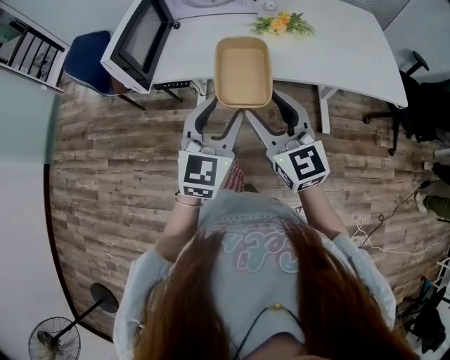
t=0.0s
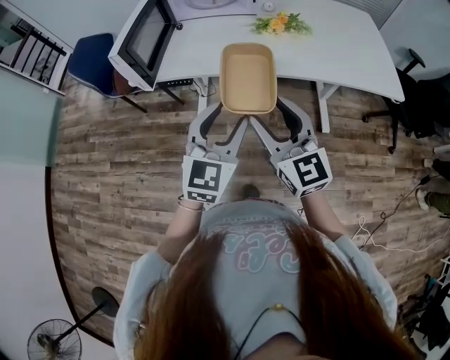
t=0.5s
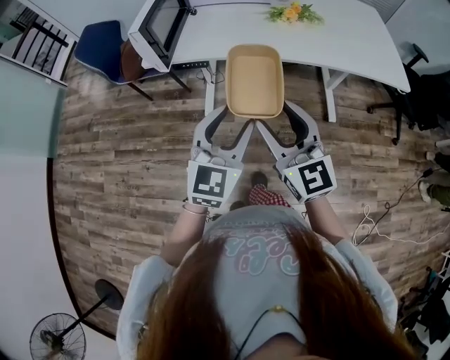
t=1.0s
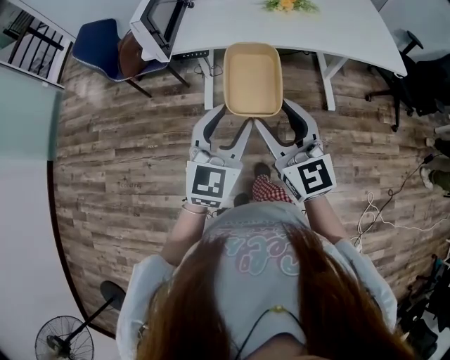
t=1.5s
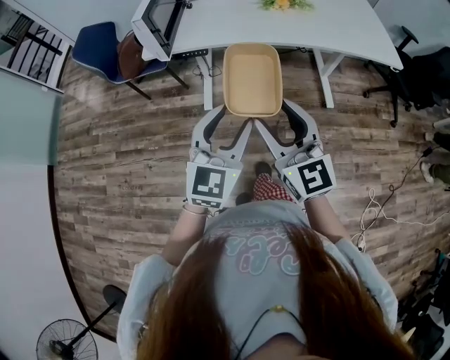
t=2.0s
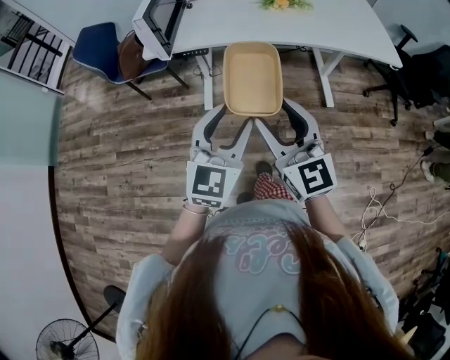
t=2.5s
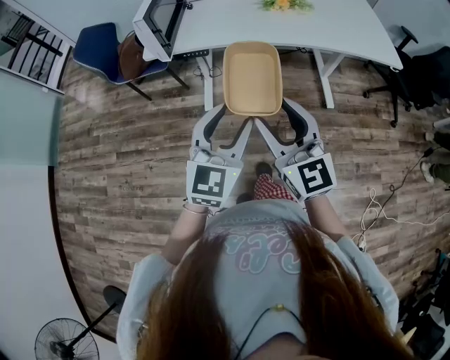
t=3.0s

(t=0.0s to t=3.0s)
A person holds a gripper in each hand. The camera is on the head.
t=0.0s - t=1.5s: The grippers both shift backward and to the left by about 15 cm.
t=1.5s - t=3.0s: The grippers make only small movements.

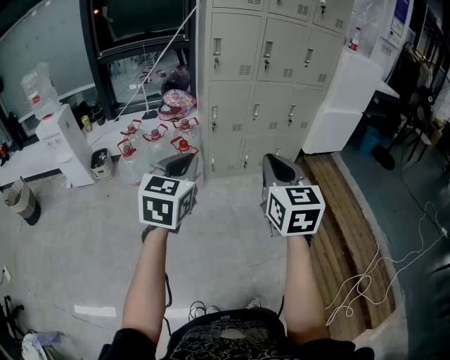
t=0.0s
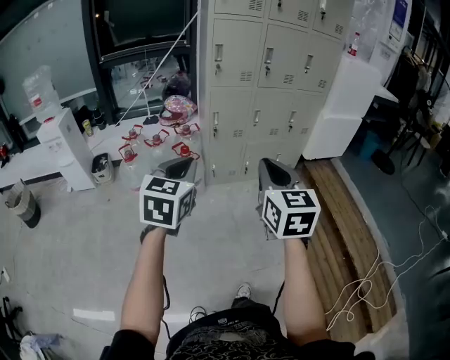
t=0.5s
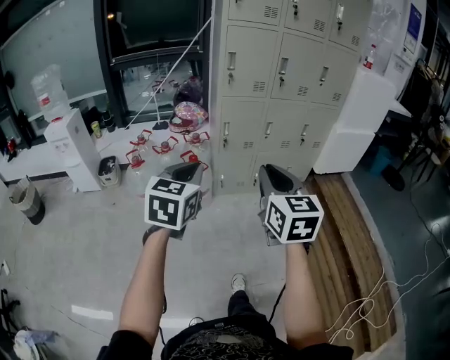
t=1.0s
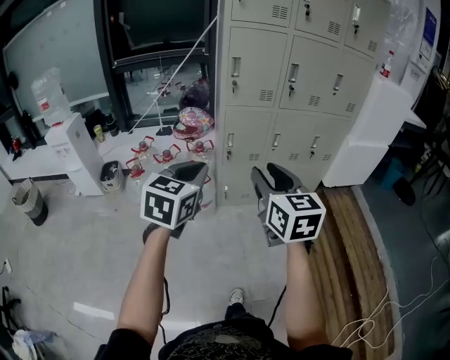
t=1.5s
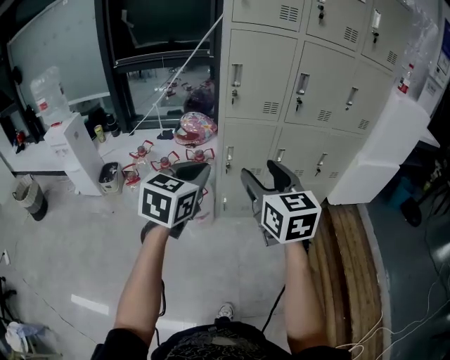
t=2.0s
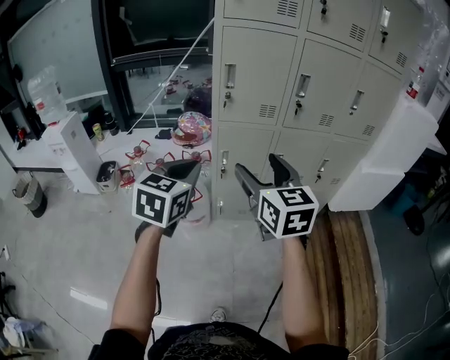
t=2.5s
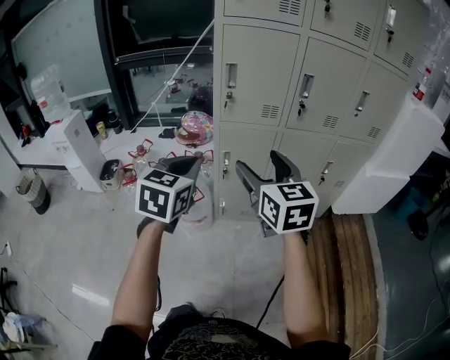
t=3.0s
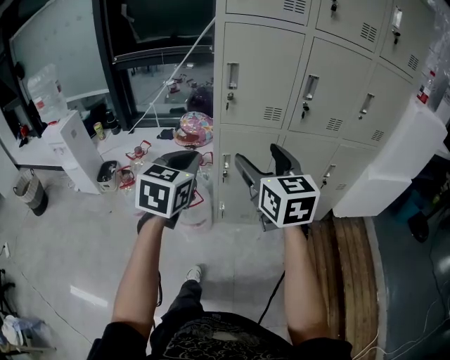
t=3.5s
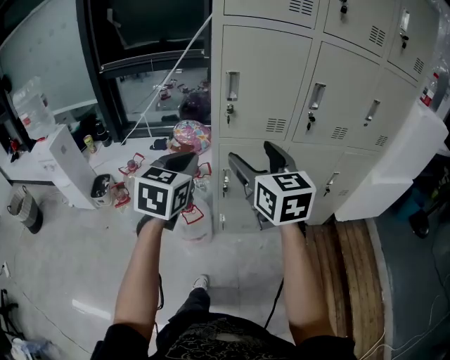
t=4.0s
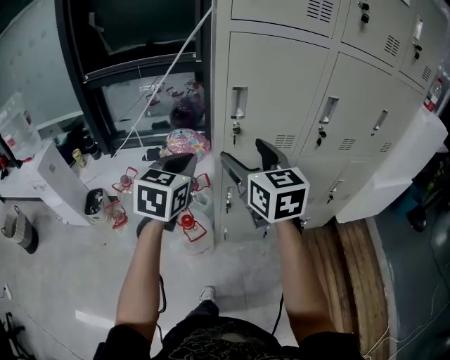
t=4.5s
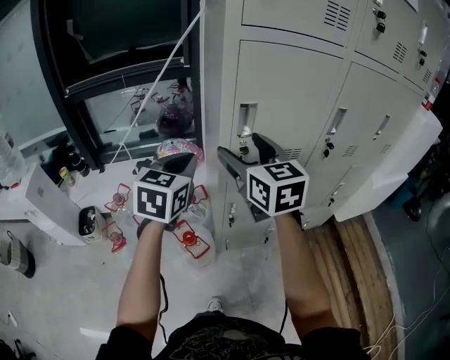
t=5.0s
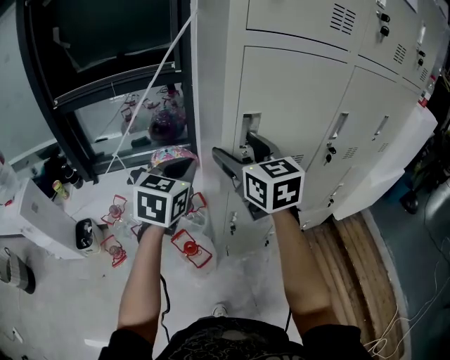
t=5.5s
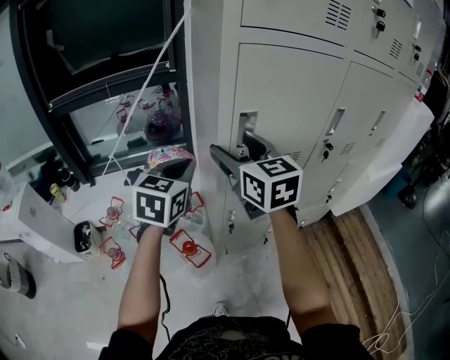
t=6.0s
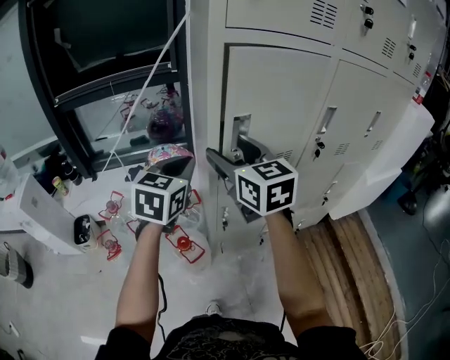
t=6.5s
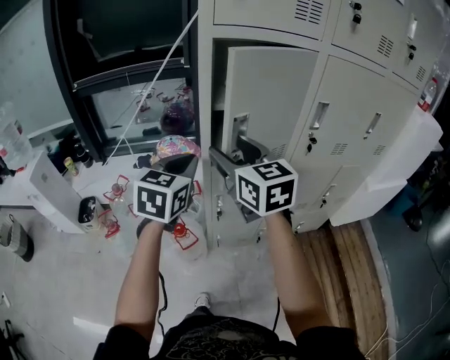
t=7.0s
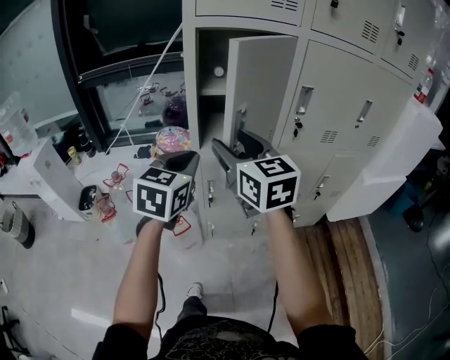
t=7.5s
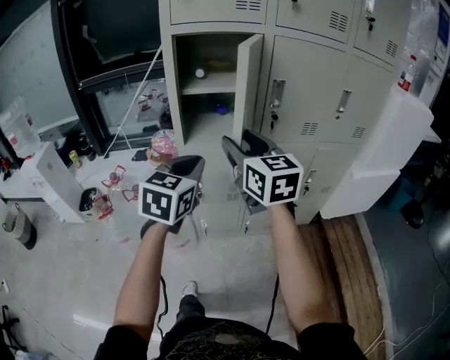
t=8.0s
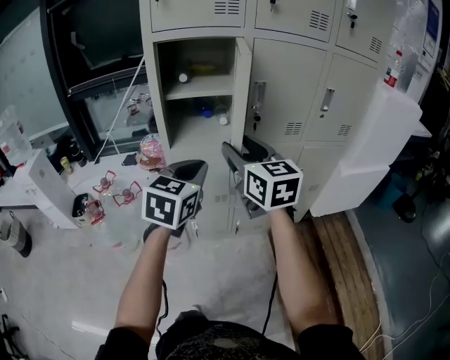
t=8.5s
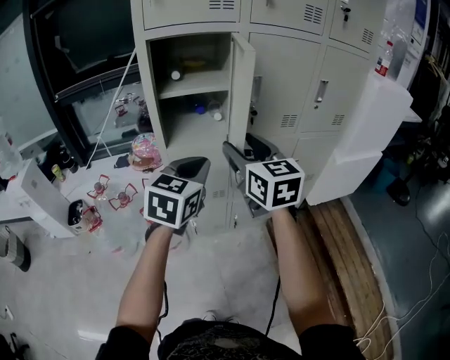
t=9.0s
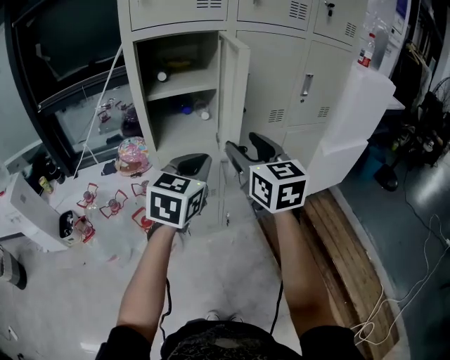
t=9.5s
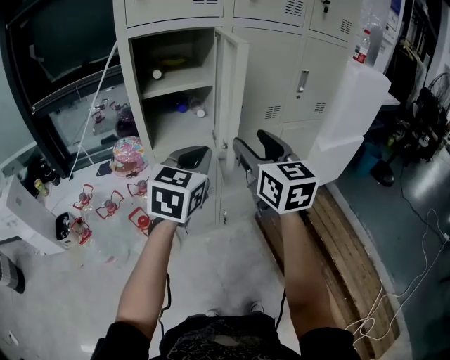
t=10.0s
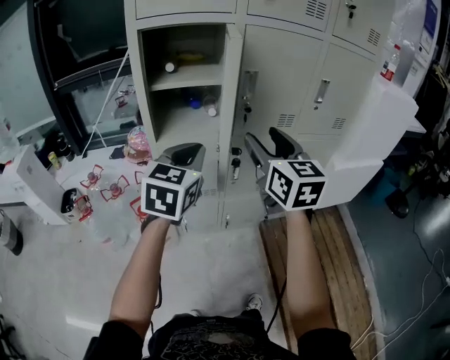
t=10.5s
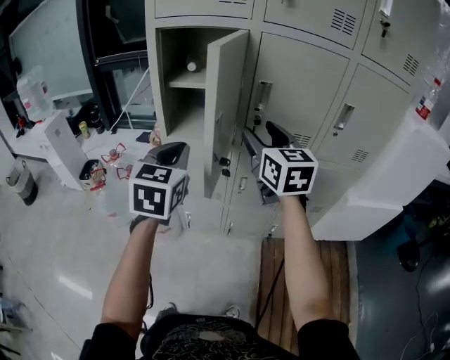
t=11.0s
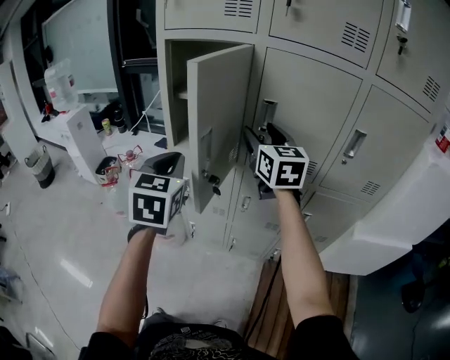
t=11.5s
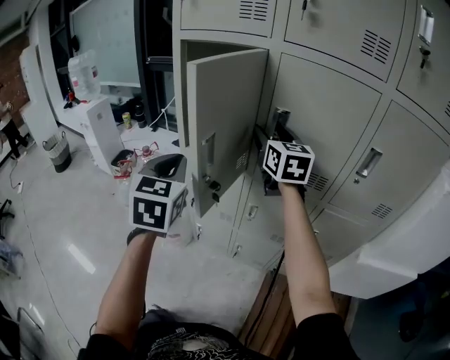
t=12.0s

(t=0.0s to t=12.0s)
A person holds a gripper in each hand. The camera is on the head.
t=0.0s - t=2.0s: Both grippers move forward, roughly 30 cm. The right gripper opens up.
t=2.0s - t=4.0s: Both grippers travel together forward, some 20 cm.
t=4.0s - t=6.0s: The left gripper moves forward, some 20 cm. Meanwhile the right gripper moves forward and to the left, approximately 25 cm.
t=6.0s - t=8.0s: The right gripper travels to the right and backward by some 25 cm, while the left gripper heads backward and to the right, covering roughly 30 cm.
t=8.0s - t=10.0s: Both grippers travel together to the right, roughly 10 cm.
t=10.0s - t=12.0s: The right gripper moves roughly 25 cm, and turns by about 30 degrees, while the left gripper swivels approximately 50 degrees.

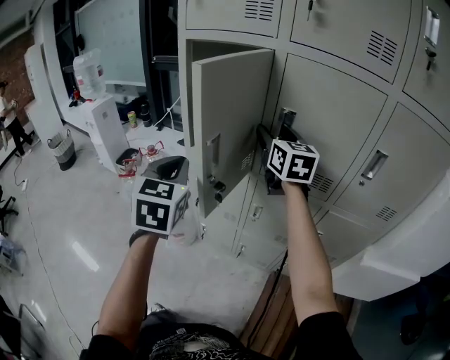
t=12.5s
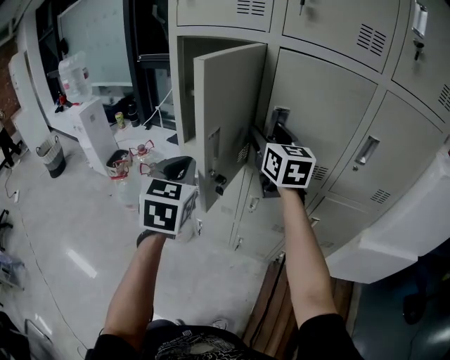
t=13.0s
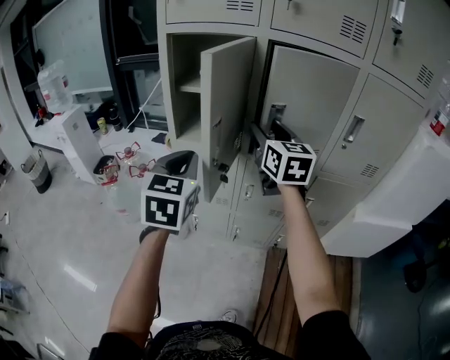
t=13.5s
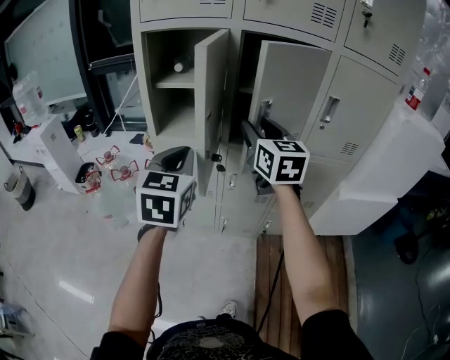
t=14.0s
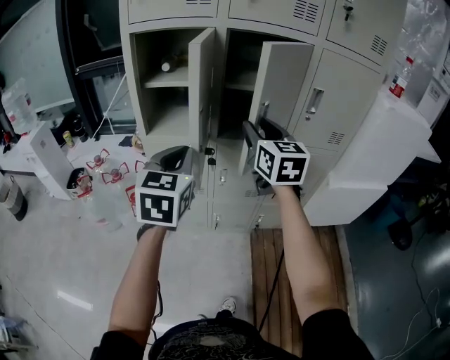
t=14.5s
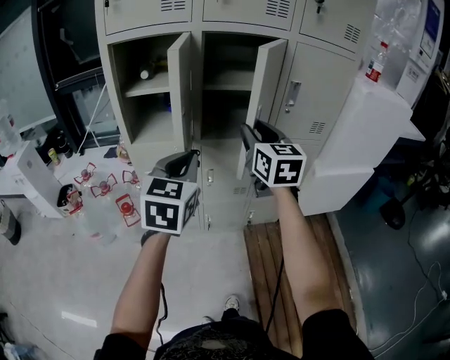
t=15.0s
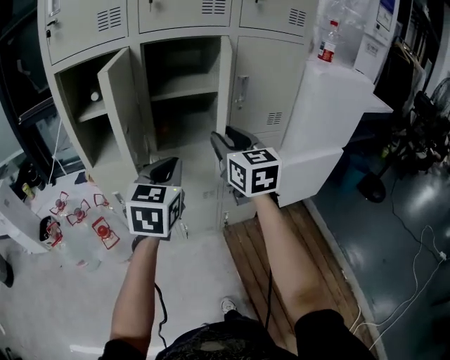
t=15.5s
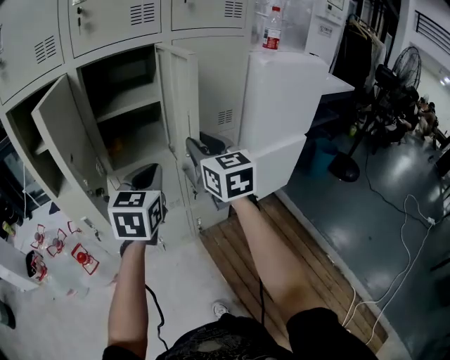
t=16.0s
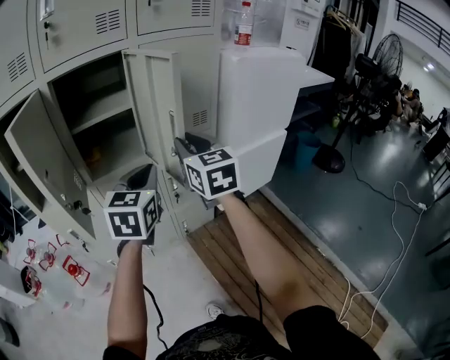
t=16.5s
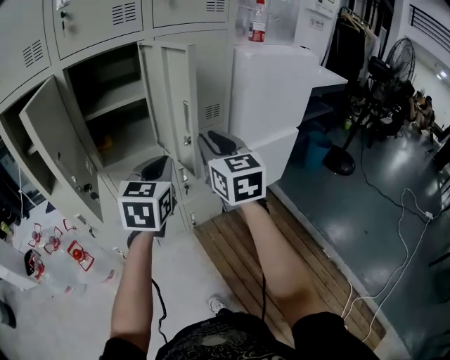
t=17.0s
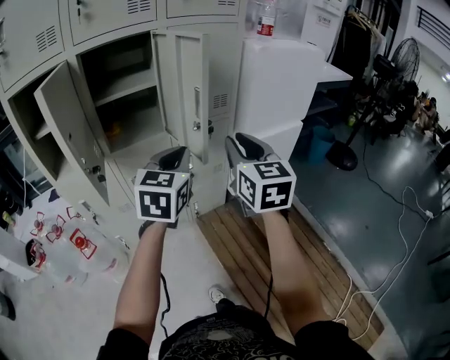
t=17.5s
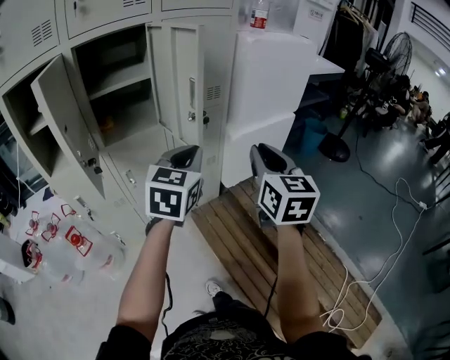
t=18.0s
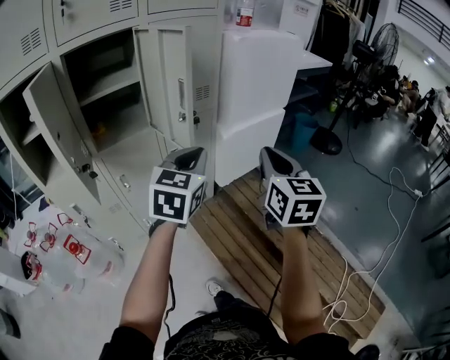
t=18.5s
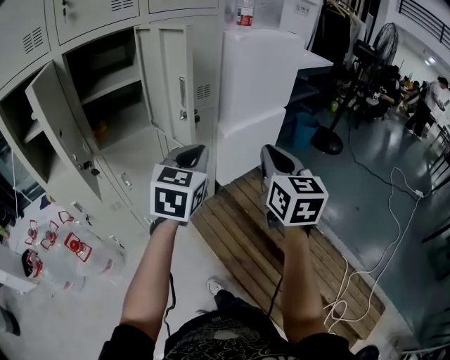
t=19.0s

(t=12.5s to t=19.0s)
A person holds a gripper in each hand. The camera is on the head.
t=12.5s - t=14.5s: The left gripper heads to the right and backward, covering about 10 cm, and changes its angle by about 30 degrees; the right gripper is displaced backward by about 15 cm.
t=14.5s - t=17.0s: Both grippers move to the right, about 25 cm. The left gripper turns by about 30 degrees, while the right gripper swivels some 20 degrees.
t=17.0s - t=19.0s: The right gripper is displaced to the right and backward by approximately 20 cm, and turns by some 20 degrees; the left gripper shifts approximately 10 cm to the right and backward.

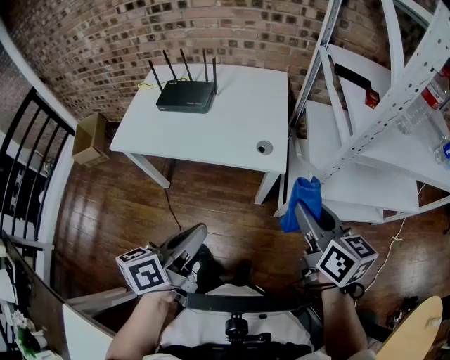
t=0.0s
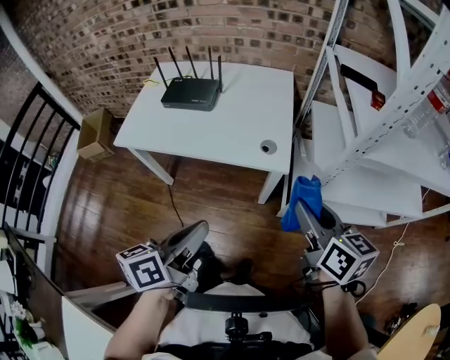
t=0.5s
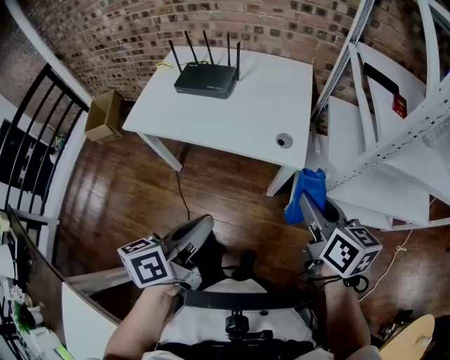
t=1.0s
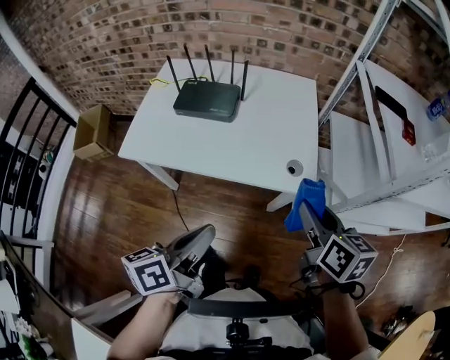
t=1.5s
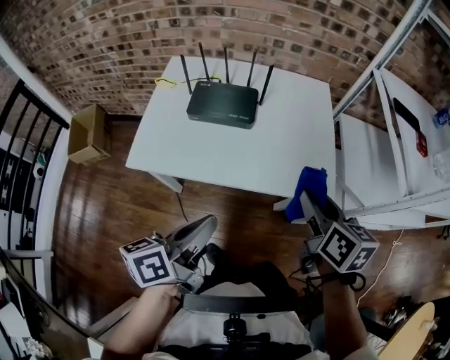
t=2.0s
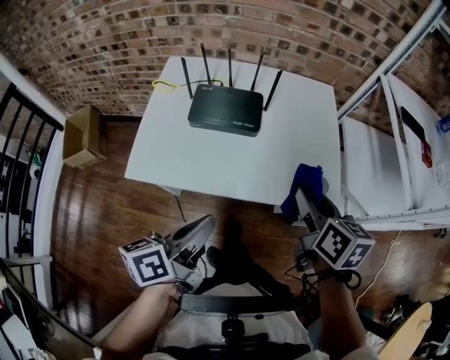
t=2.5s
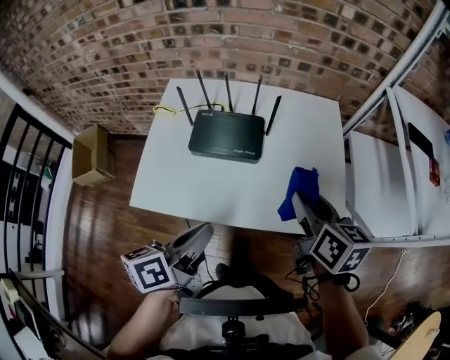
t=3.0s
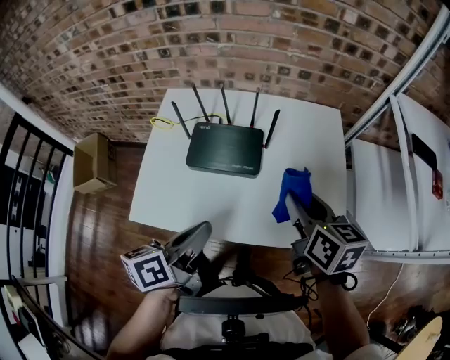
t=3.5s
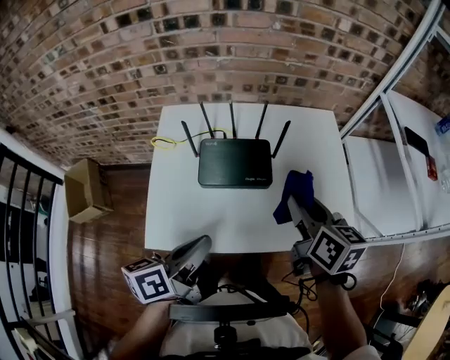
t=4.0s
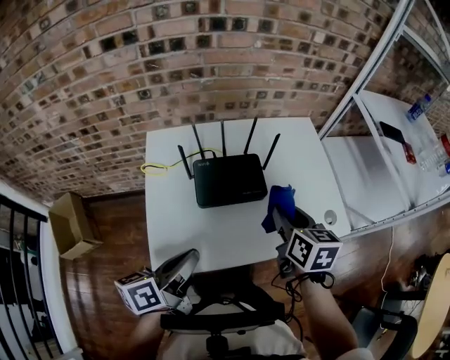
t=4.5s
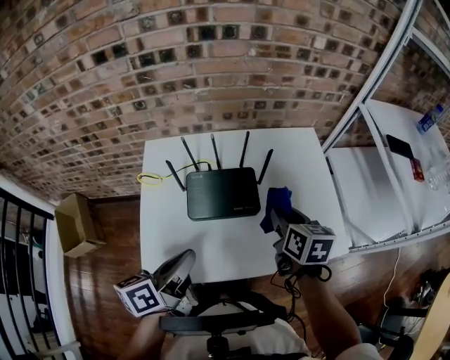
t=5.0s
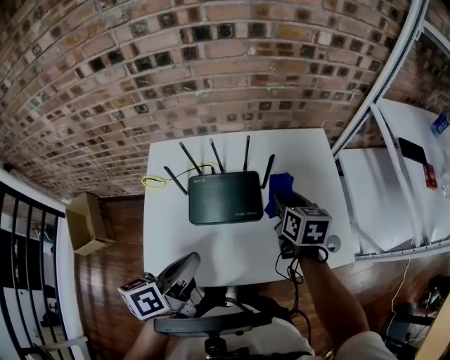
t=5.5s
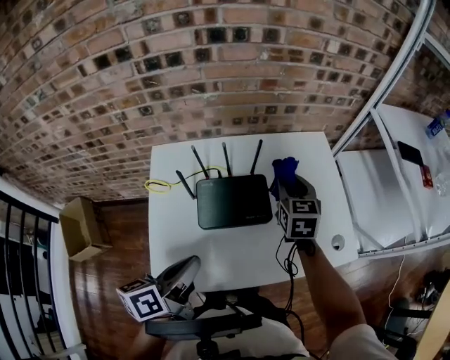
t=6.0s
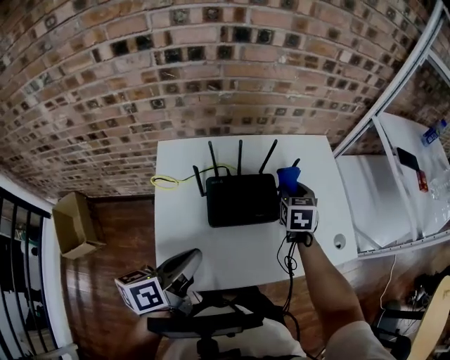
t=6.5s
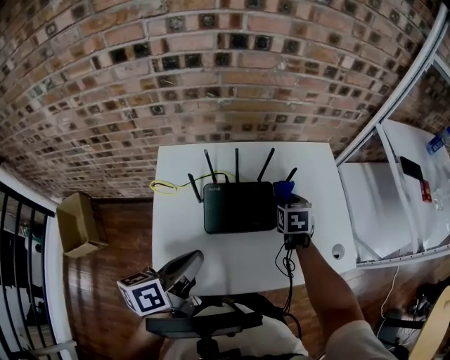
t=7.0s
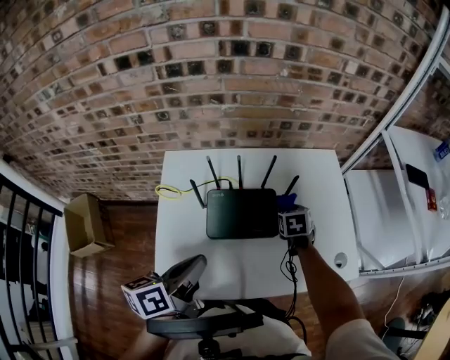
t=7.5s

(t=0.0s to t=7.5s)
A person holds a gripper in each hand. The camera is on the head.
t=0.0s - t=2.0s: Both grippers move to the left and forward, roughly 30 cm.
t=2.0s - t=4.0s: The two grippers go approximately 25 cm forward and to the left.
t=4.0s - t=5.5s: The left gripper is displaced forward by about 10 cm, and reaches some 10 cm to the left, then returns. Meanwhile the right gripper goes roughly 15 cm forward and downward.
t=5.5s - t=7.5s: The right gripper goes roughly 10 cm downward, and turns by some 30 degrees. The left gripper moves to the left, about 5 cm.
